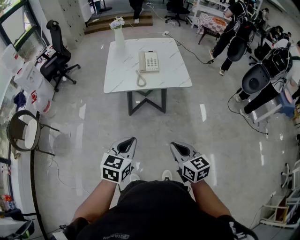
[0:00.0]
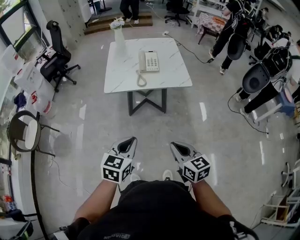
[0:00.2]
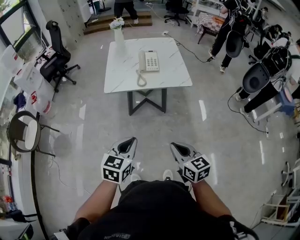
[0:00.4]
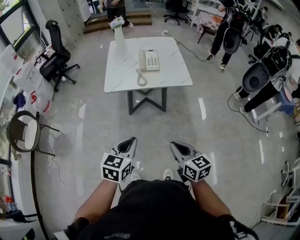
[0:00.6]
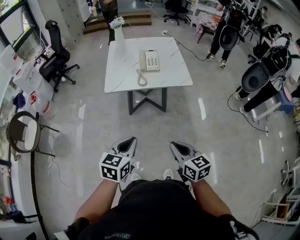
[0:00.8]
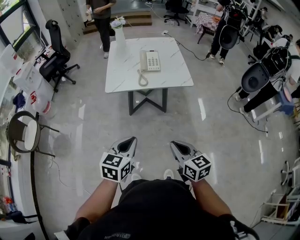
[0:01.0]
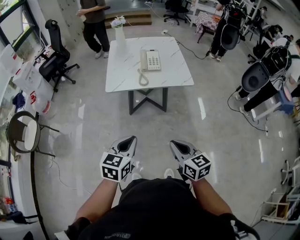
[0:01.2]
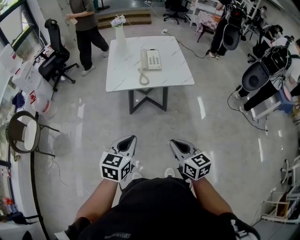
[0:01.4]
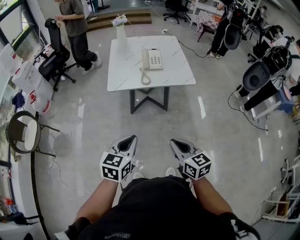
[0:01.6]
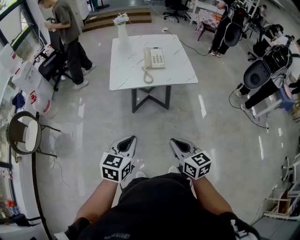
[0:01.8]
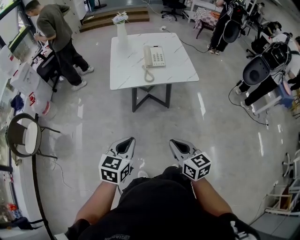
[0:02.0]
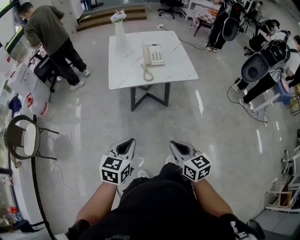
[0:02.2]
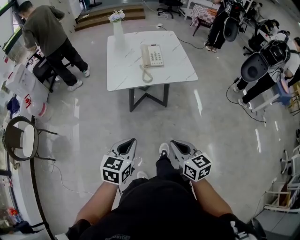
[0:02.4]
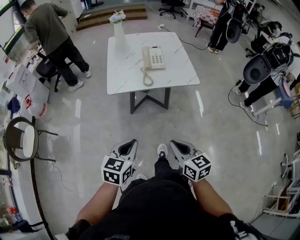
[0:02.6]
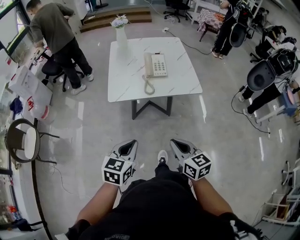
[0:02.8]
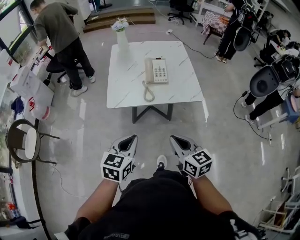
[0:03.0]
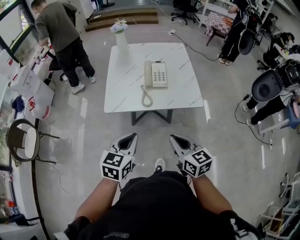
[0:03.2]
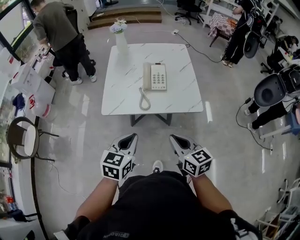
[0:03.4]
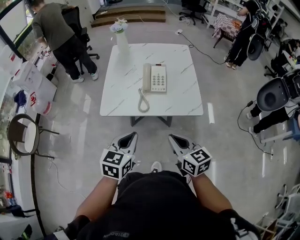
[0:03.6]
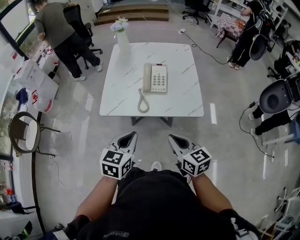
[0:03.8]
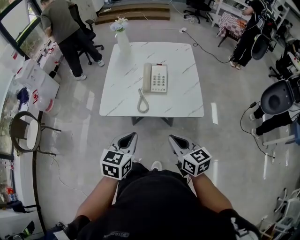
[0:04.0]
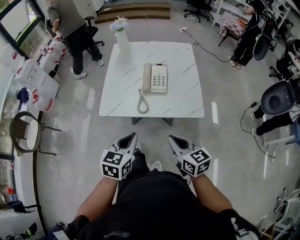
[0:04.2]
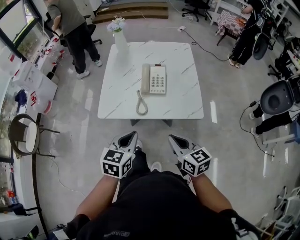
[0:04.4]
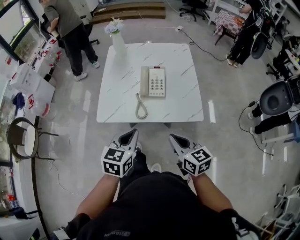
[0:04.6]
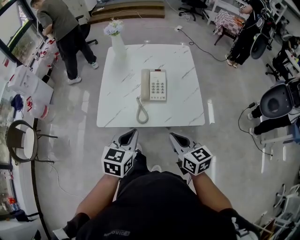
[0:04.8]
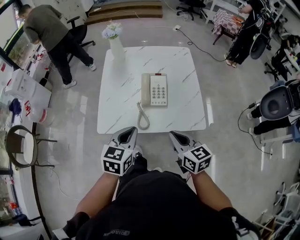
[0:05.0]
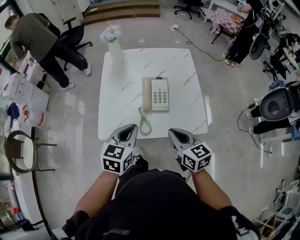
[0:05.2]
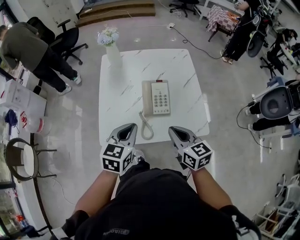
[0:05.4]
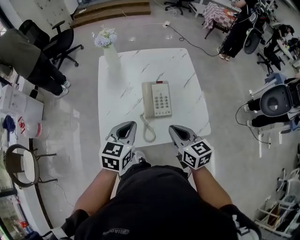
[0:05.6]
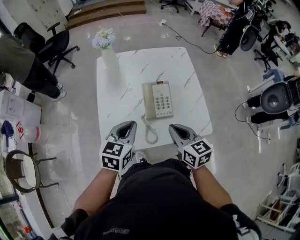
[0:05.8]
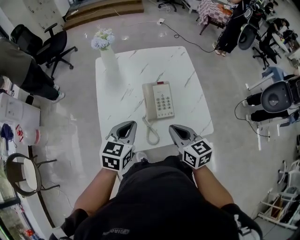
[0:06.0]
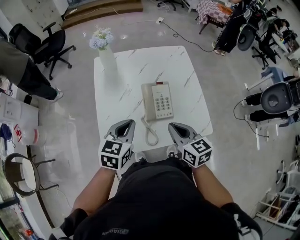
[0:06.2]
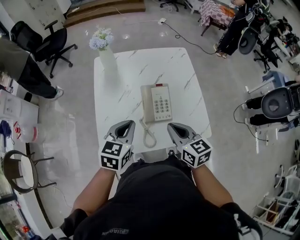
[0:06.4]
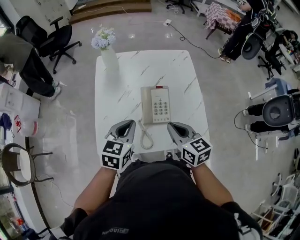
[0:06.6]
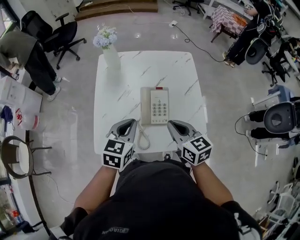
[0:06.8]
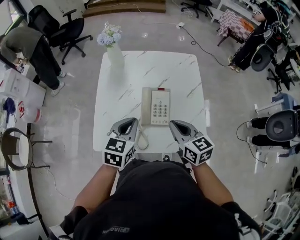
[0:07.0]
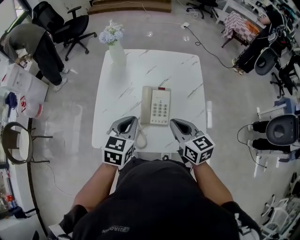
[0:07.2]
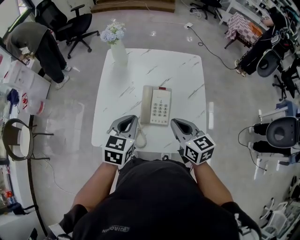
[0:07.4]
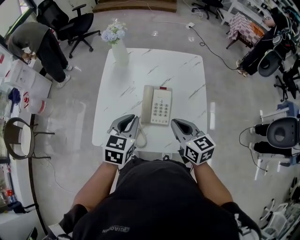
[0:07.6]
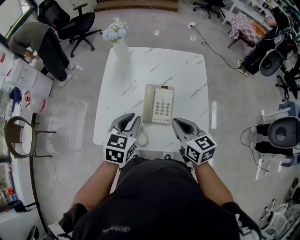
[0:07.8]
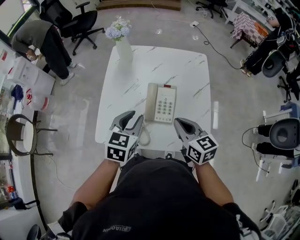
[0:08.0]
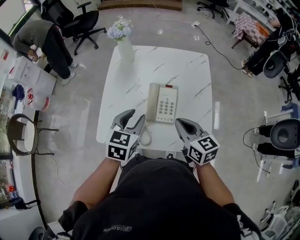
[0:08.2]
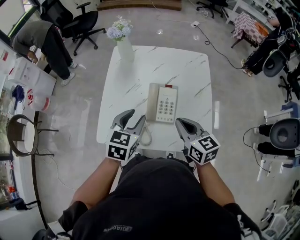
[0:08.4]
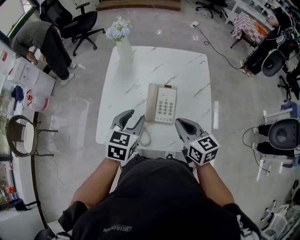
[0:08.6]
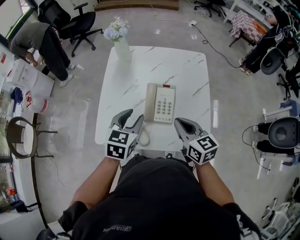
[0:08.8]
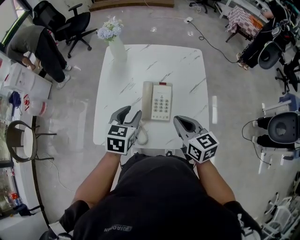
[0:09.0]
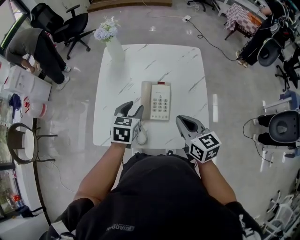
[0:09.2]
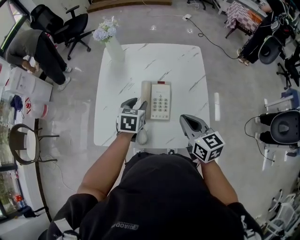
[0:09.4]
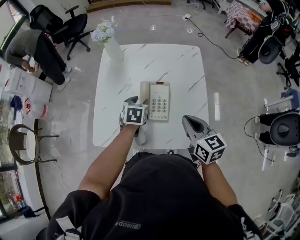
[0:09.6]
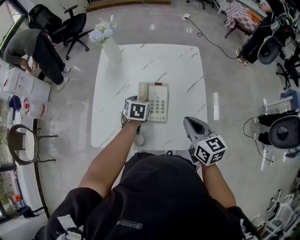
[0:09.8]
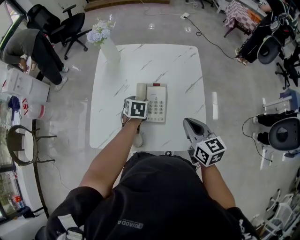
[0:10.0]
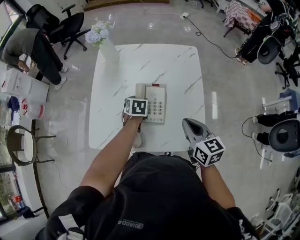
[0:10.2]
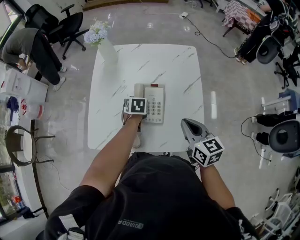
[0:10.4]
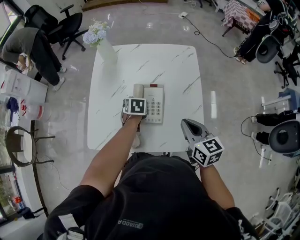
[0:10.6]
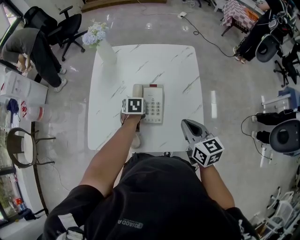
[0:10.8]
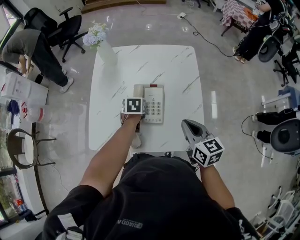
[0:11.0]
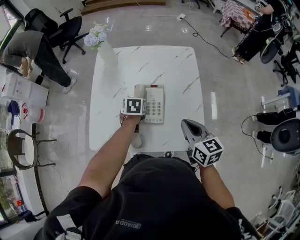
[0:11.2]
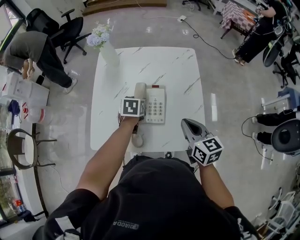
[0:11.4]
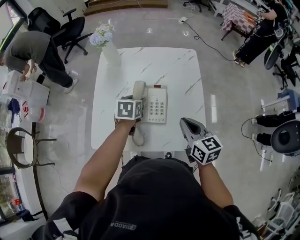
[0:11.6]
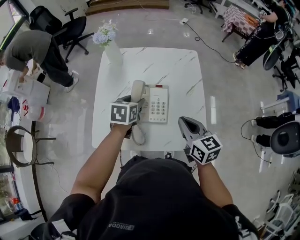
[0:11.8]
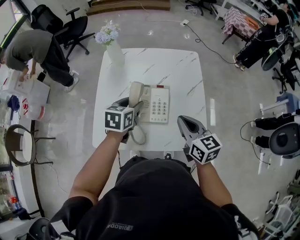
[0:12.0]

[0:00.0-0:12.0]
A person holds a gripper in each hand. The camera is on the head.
0.0 to 1.6 s: The right gripper goes approximately 5 cm to the left.
1.6 to 3.0 s: The grippers both shift forward by roughly 15 cm.
3.0 to 4.4 s: Both grippers move forward and to the right, approximately 15 cm.
4.4 to 6.0 s: The grippers both shift forward by roughly 25 cm.
6.0 to 7.6 s: The right gripper moves to the right and forward, about 10 cm, while the left gripper travels to the right by about 5 cm.
7.6 to 9.0 s: The left gripper opens.
9.0 to 10.4 s: The right gripper moves to the right, some 10 cm, while the left gripper shifts approximately 20 cm downward and forward, and rotates some 30 degrees.
10.4 to 12.0 s: The right gripper shifts some 5 cm to the left, while the left gripper shifts roughly 15 cm upward, and swivels approximately 20 degrees.

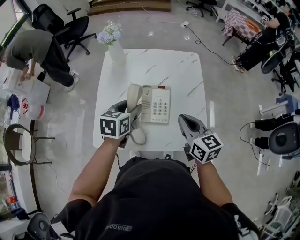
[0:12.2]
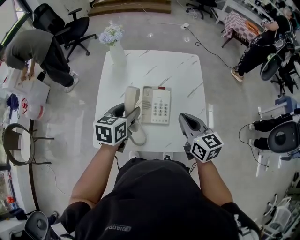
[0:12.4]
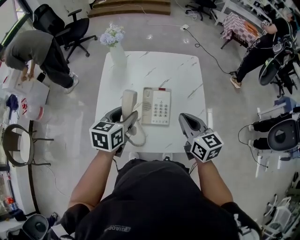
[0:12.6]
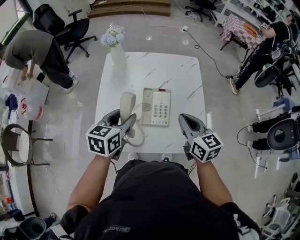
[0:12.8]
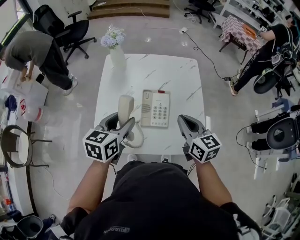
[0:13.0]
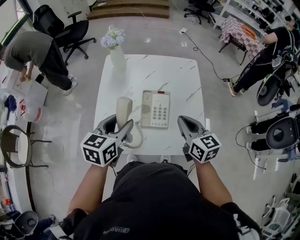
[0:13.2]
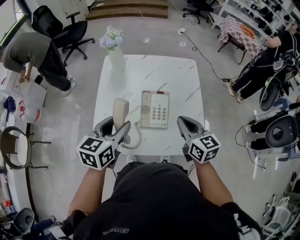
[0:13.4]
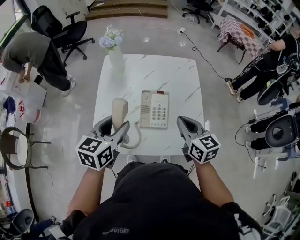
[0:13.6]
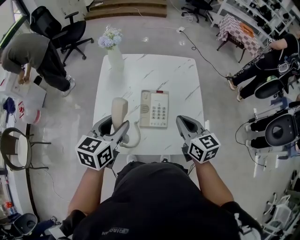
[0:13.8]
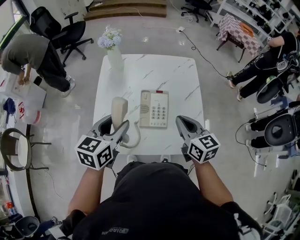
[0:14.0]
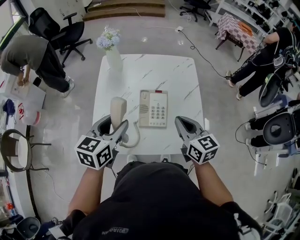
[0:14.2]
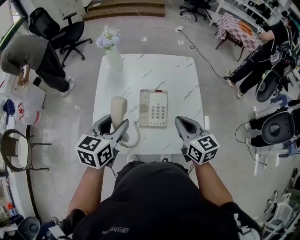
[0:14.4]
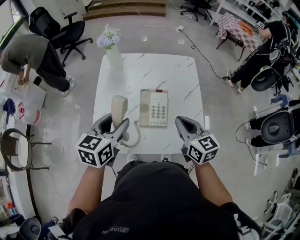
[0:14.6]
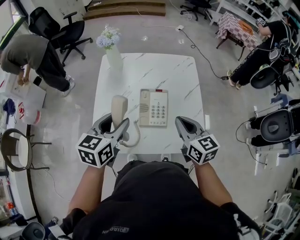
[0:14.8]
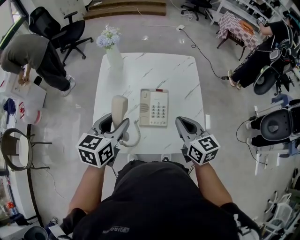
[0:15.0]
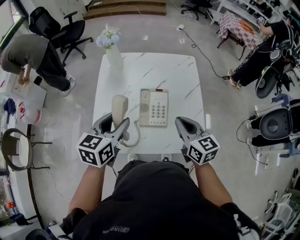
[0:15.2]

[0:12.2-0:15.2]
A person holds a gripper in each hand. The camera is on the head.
12.2 to 13.8 s: The left gripper is displaced upward and backward by roughly 10 cm.
13.8 to 15.2 s: The two grippers keep their place.

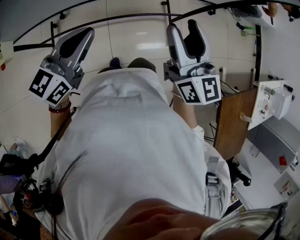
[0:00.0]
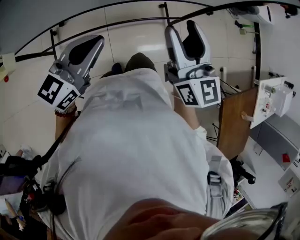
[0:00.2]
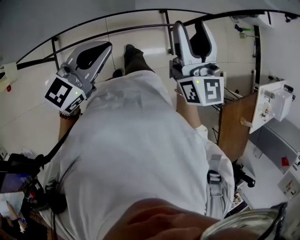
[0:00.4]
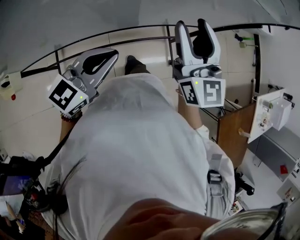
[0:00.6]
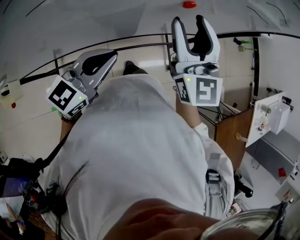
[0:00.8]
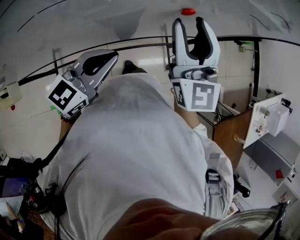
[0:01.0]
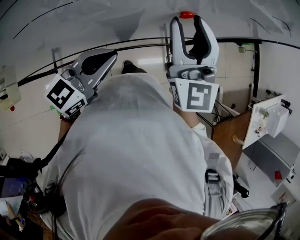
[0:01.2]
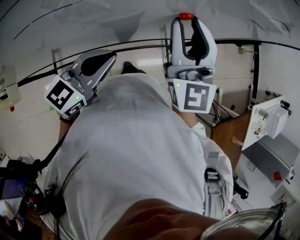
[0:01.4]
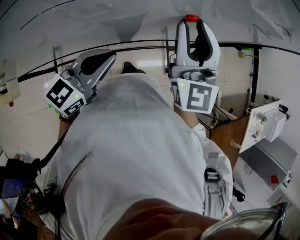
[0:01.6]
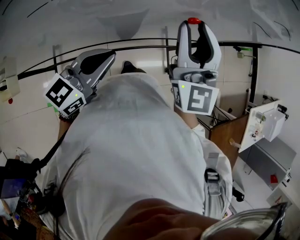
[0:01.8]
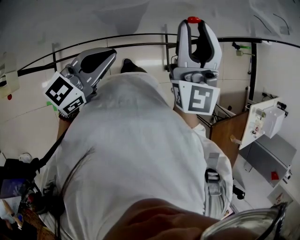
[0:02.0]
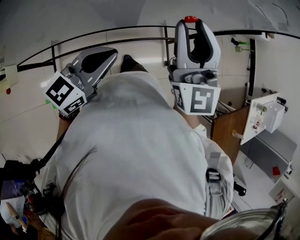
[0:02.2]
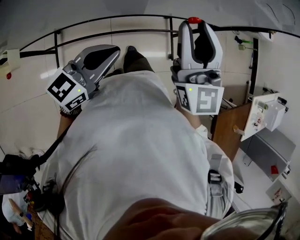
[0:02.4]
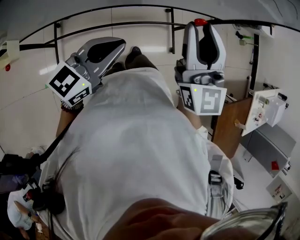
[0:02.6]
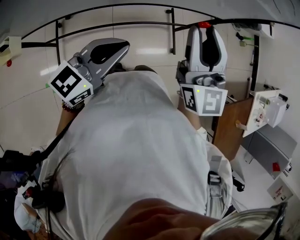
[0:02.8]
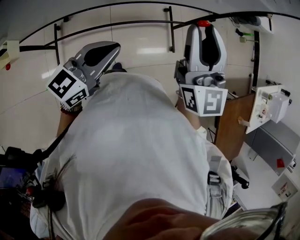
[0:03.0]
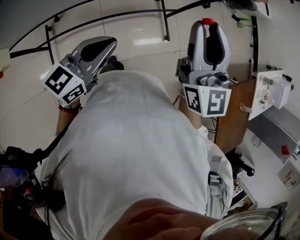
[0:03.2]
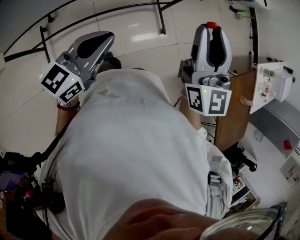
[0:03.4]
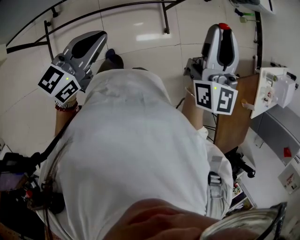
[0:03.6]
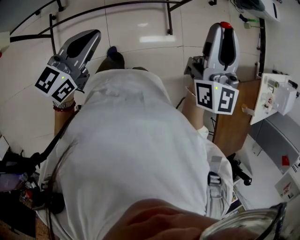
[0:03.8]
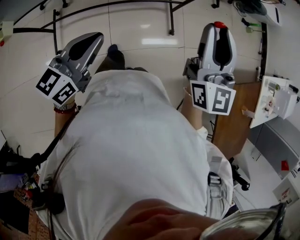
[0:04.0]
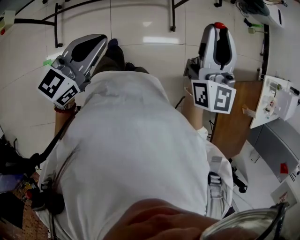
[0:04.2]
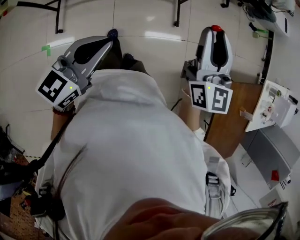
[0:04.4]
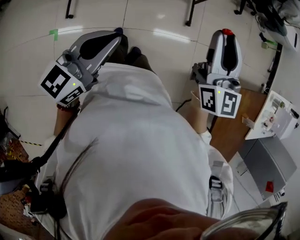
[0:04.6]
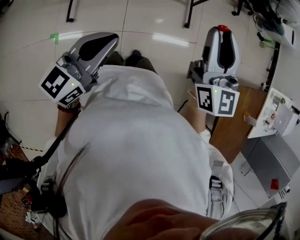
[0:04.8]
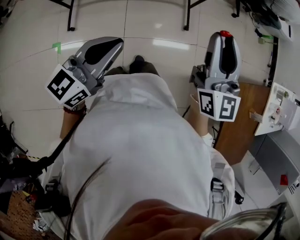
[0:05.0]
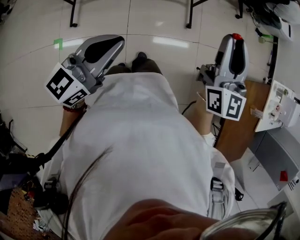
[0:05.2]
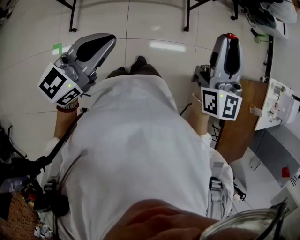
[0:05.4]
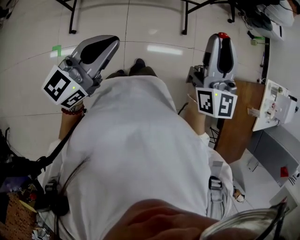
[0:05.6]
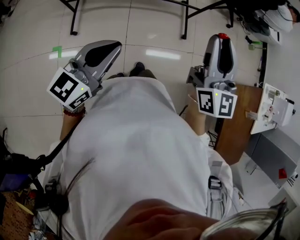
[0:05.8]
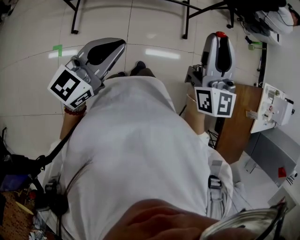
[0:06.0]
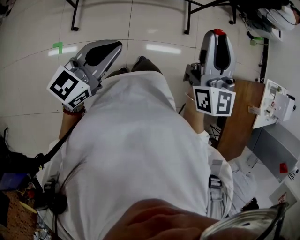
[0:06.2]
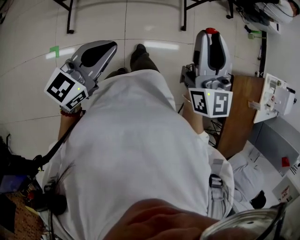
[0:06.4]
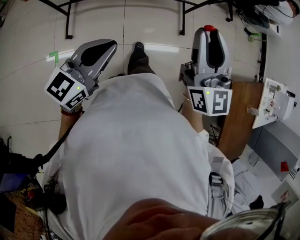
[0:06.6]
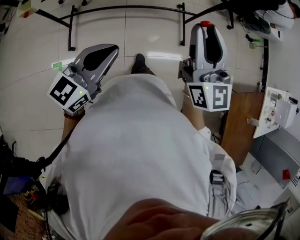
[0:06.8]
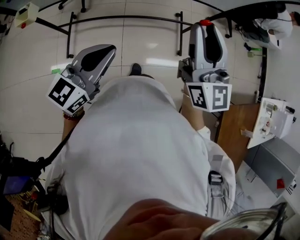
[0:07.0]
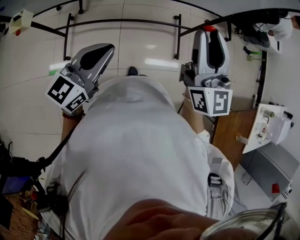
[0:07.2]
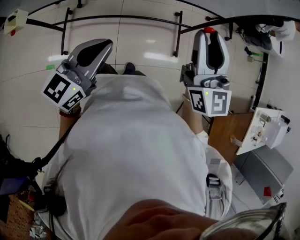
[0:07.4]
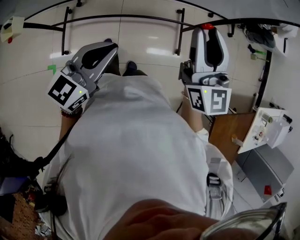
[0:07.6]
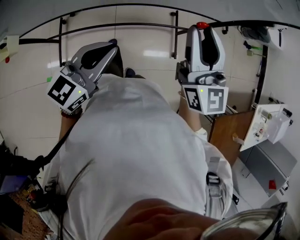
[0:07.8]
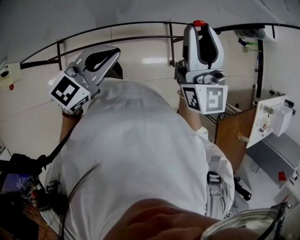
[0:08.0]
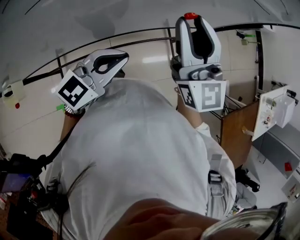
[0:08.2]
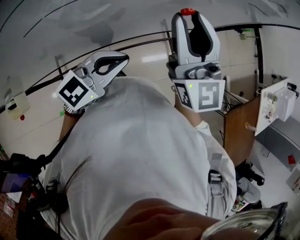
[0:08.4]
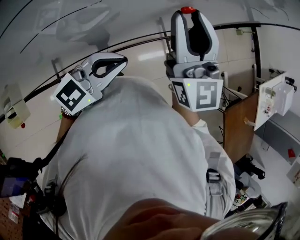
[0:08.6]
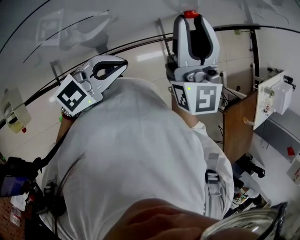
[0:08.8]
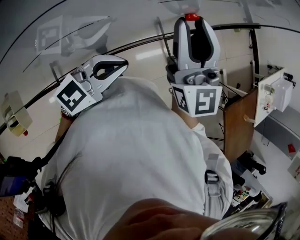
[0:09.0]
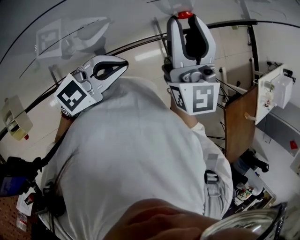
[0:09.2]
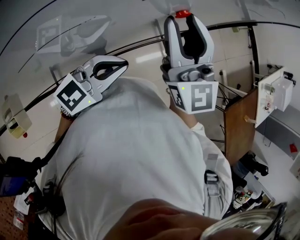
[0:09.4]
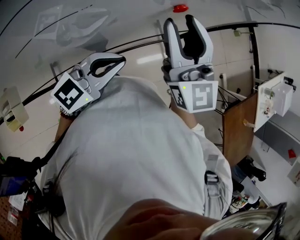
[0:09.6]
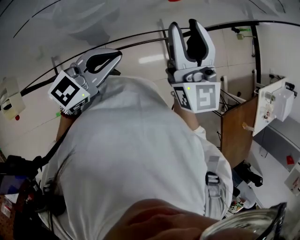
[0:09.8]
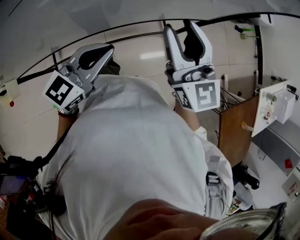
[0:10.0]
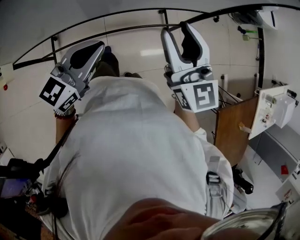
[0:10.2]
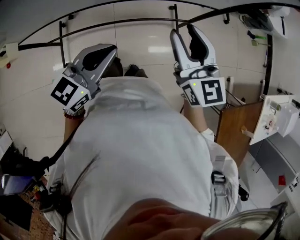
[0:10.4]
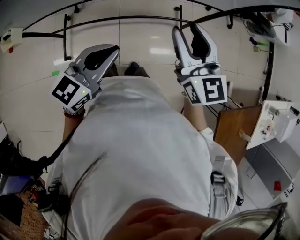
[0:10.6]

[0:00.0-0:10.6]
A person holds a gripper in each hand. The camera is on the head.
0.0 to 1.6 s: The left gripper shifts roughly 15 cm forward; the right gripper goes roughly 20 cm forward and upward, swivels some 30 degrees, and closes its fingers.
1.6 to 3.0 s: Both grippers travel together backward, approximately 15 cm.
3.0 to 4.6 s: The right gripper goes roughly 30 cm to the right and backward. Meanwhile the left gripper is displaced backward and to the right by some 30 cm.
4.6 to 6.0 s: The left gripper shifts roughly 15 cm to the left and backward, while the right gripper is displaced backward, to the left and upward by roughly 20 cm.
6.0 to 7.6 s: The grippers both shift forward by some 35 cm.
7.6 to 9.0 s: The right gripper is displaced forward, to the left and upward by roughly 15 cm, and changes its angle by approximately 20 degrees; the left gripper travels forward by approximately 10 cm, and turns by about 40 degrees.
9.0 to 10.6 s: The right gripper shifts by about 15 cm, and swivels some 30 degrees; the left gripper moves roughly 15 cm, and swivels some 30 degrees.
